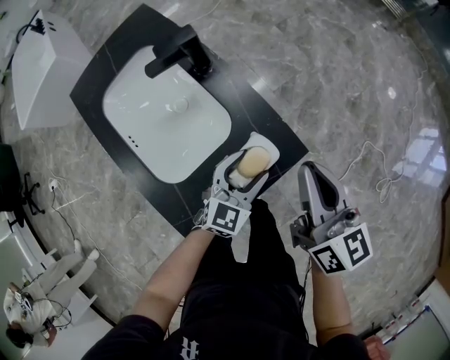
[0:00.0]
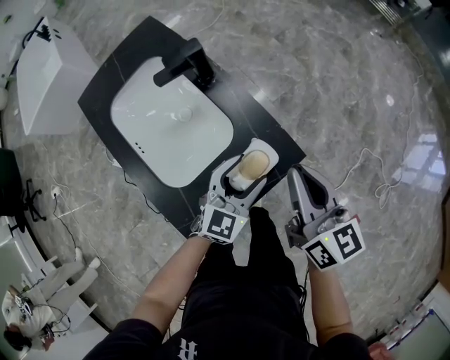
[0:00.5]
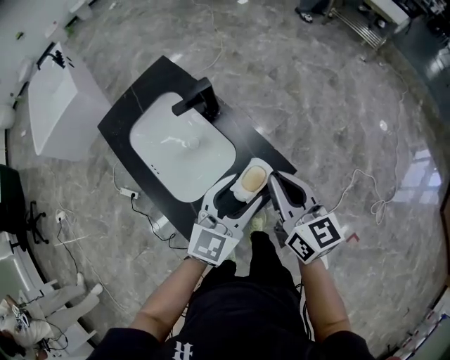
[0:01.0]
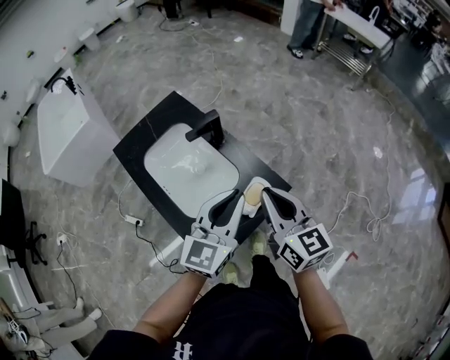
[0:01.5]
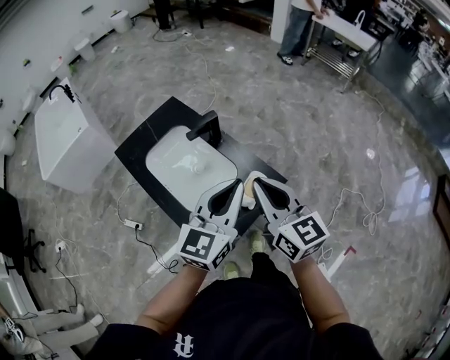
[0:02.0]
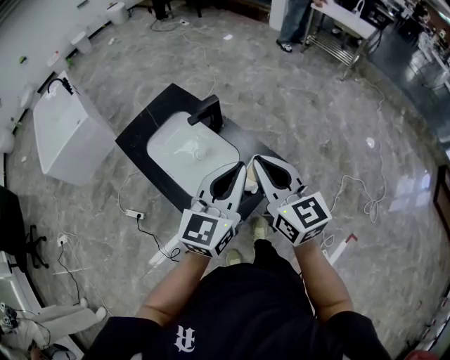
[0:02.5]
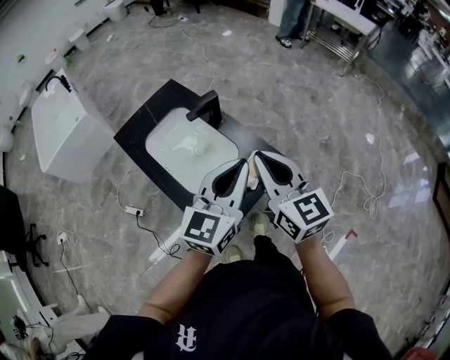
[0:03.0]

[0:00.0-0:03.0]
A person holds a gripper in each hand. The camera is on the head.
0:00.0 to 0:01.5: The right gripper travels upward, to the left and backward by about 15 cm, while the left gripper is displaced upward by approximately 30 cm, rotates roughly 20 degrees, and closes its fingers.
0:01.5 to 0:03.0: Both grippers travel together upward, approximately 5 cm.

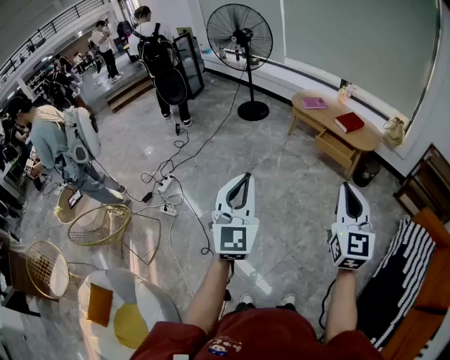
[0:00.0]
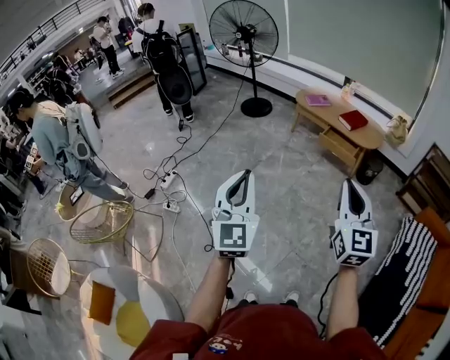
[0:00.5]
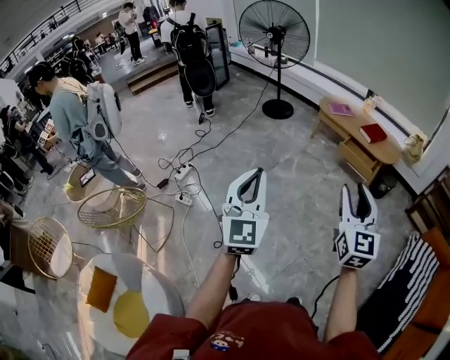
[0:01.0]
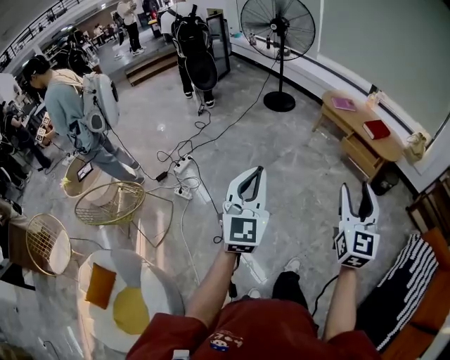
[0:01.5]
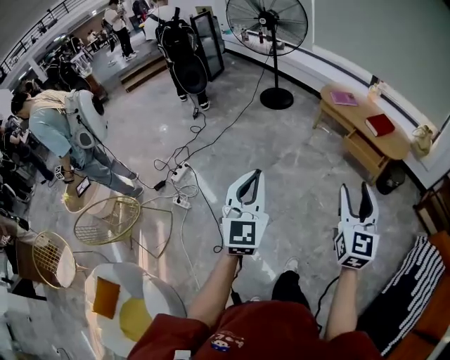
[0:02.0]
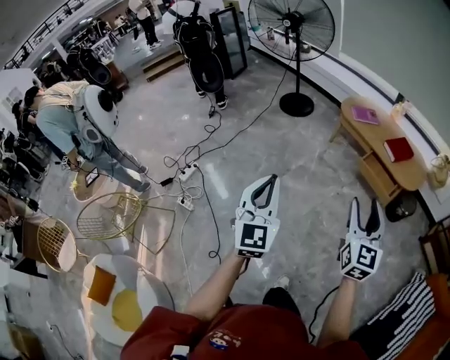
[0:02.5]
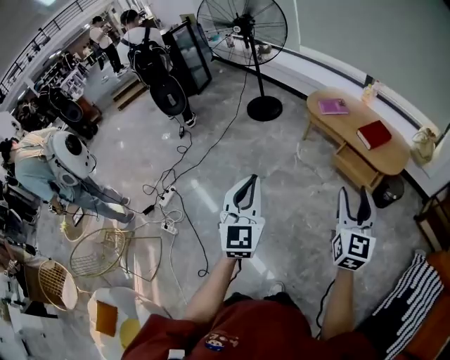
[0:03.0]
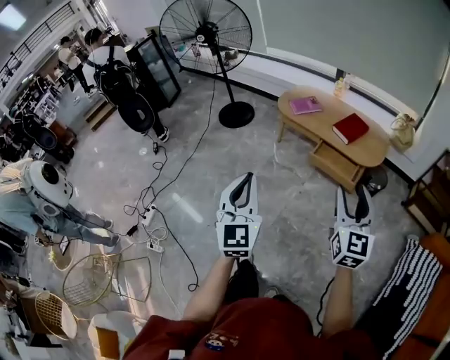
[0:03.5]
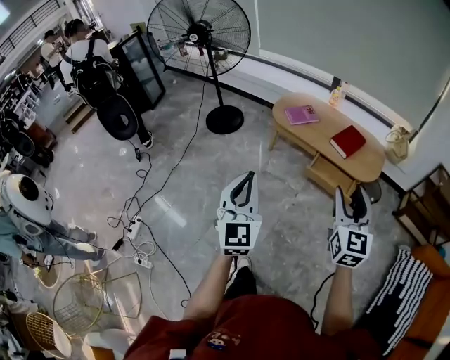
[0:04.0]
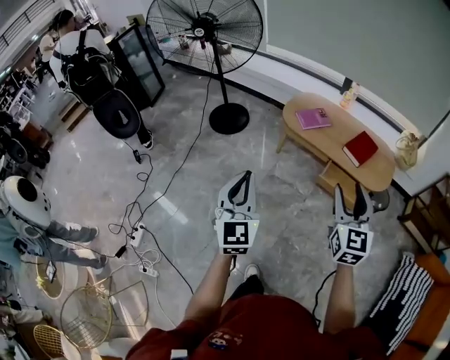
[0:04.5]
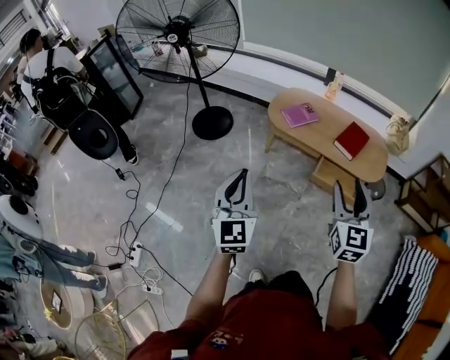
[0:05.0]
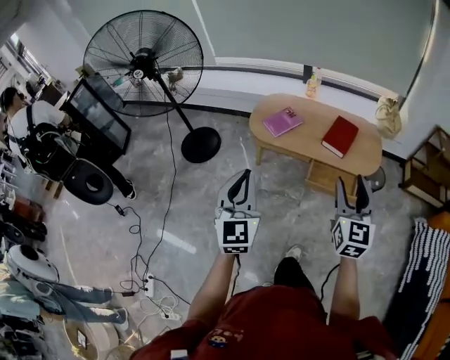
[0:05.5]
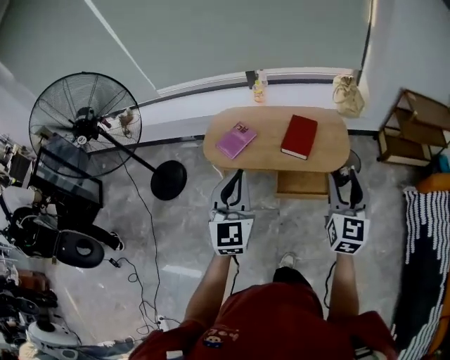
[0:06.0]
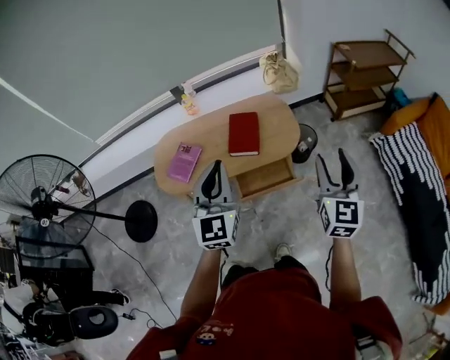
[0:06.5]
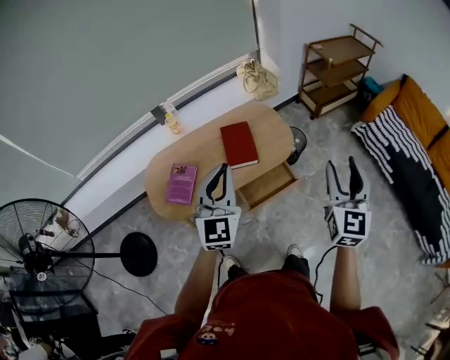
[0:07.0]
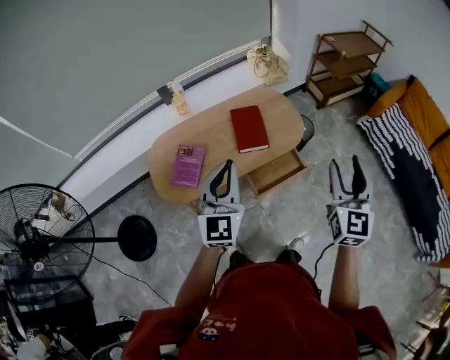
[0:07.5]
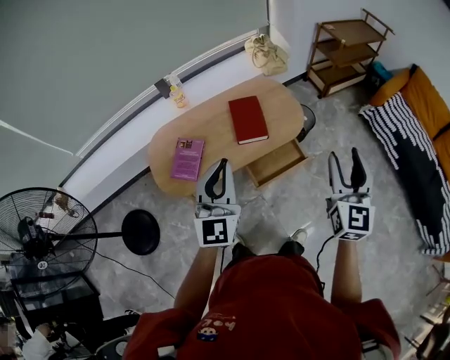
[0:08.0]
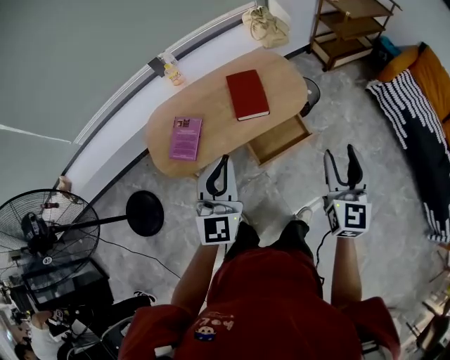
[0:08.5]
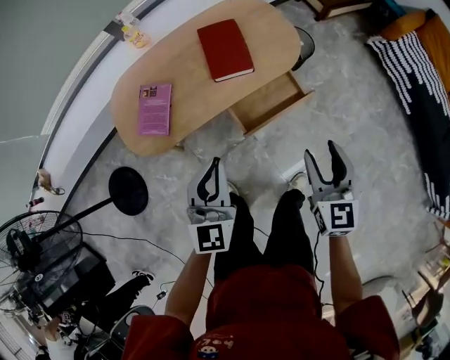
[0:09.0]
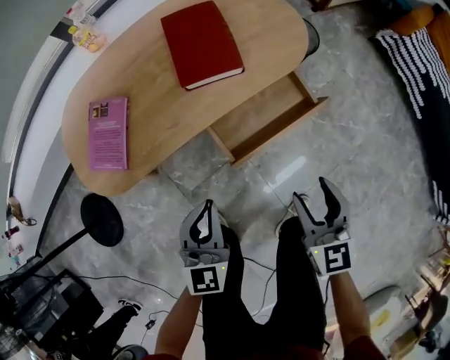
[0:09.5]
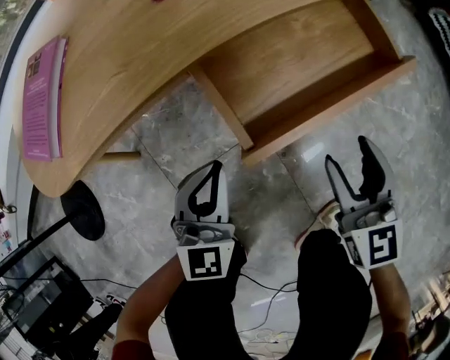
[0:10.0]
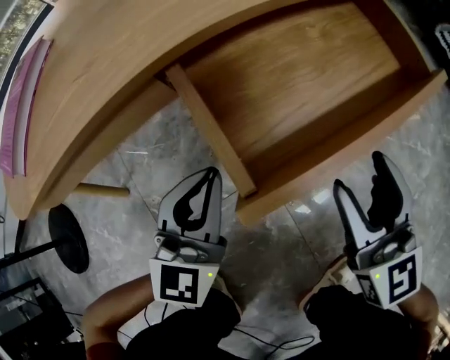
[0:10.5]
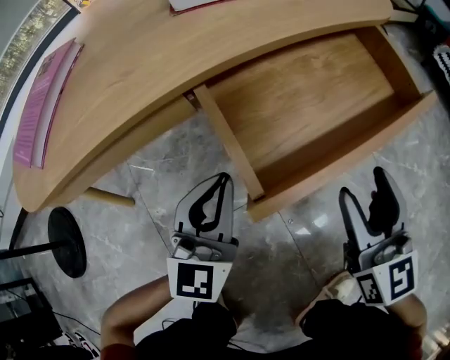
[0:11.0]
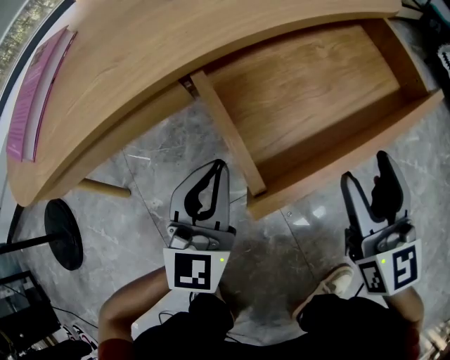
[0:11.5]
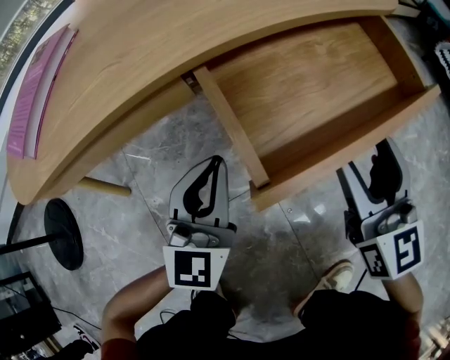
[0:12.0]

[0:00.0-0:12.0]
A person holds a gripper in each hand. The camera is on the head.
0:00.0 to 0:02.0: Both grippers move forward, to the left and downward, some 20 cm. The right gripper opens its fingers.
0:02.0 to 0:04.0: The two grippers travel together, forward, roughly 50 cm.
0:04.0 to 0:06.0: The right gripper moves approximately 30 cm, and turns by roughly 30 degrees, while the left gripper shifts by some 40 cm, and swivels about 30 degrees.
0:06.0 to 0:08.0: The right gripper swivels approximately 30 degrees. The left gripper changes place by approximately 15 cm, and swivels roughly 30 degrees.
0:08.0 to 0:10.0: The grippers both shift downward by about 70 cm. The right gripper turns by roughly 30 degrees. The left gripper swivels some 30 degrees.
0:10.0 to 0:12.0: The left gripper moves forward and downward, some 10 cm; the right gripper heads forward, covering approximately 5 cm.

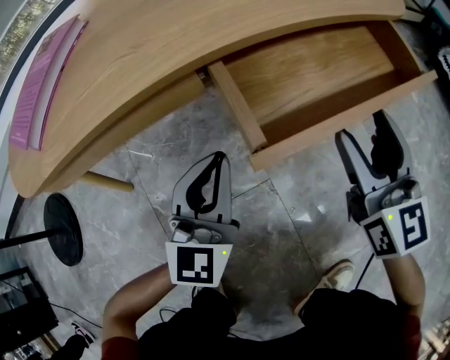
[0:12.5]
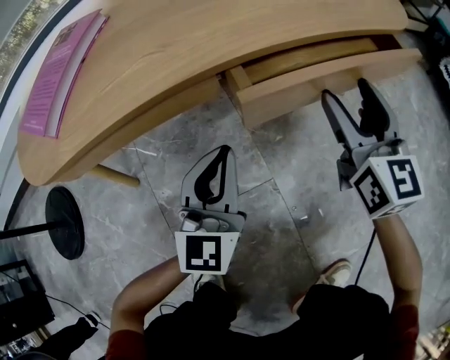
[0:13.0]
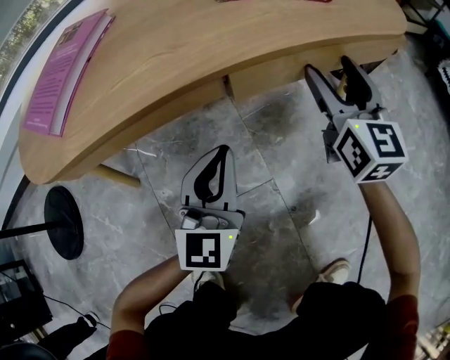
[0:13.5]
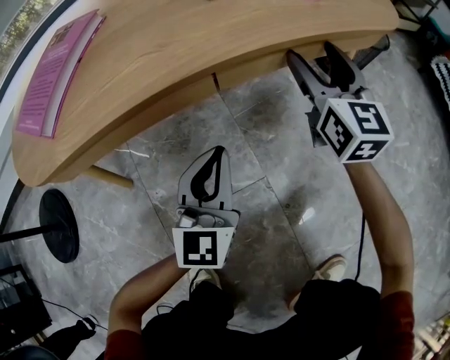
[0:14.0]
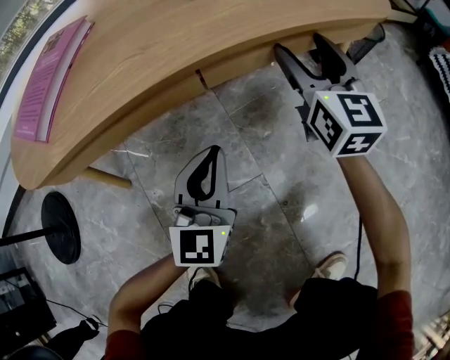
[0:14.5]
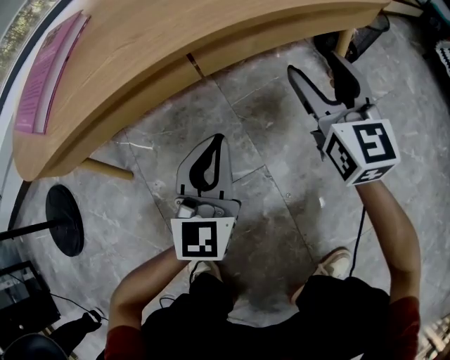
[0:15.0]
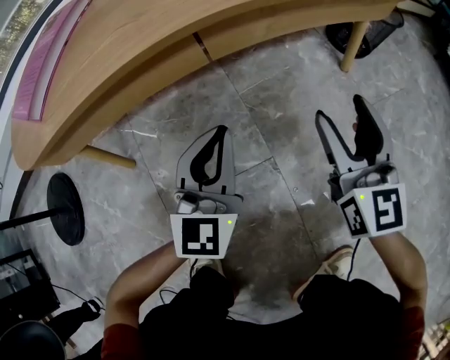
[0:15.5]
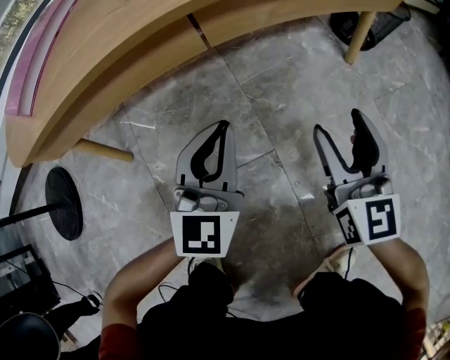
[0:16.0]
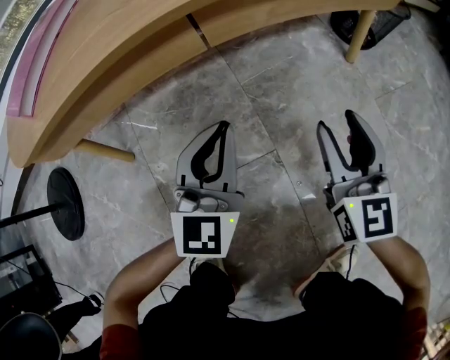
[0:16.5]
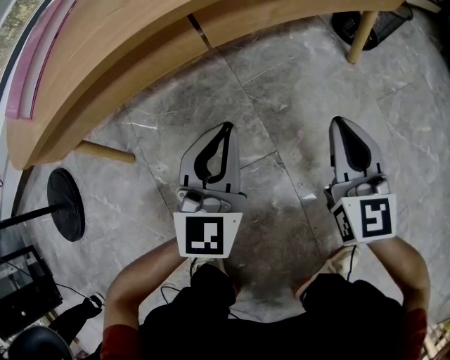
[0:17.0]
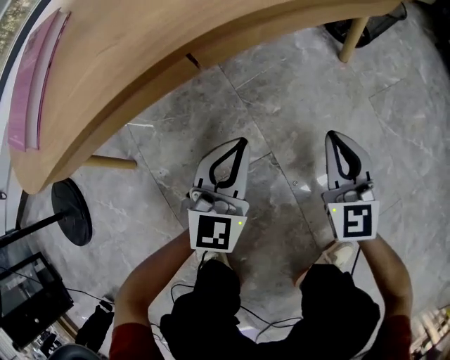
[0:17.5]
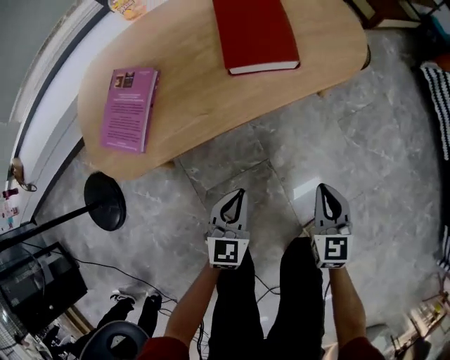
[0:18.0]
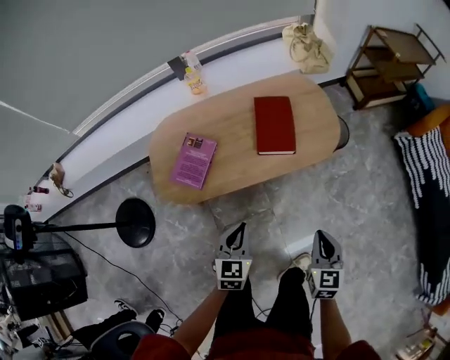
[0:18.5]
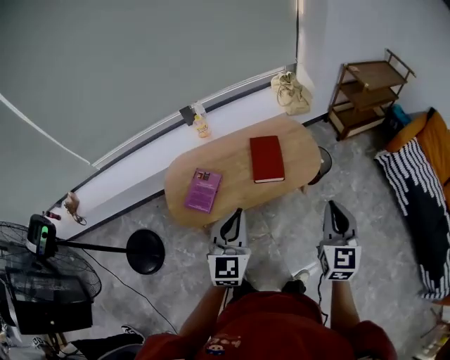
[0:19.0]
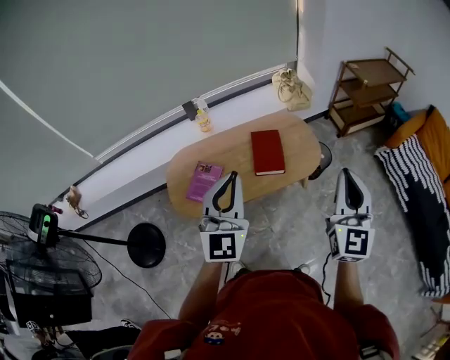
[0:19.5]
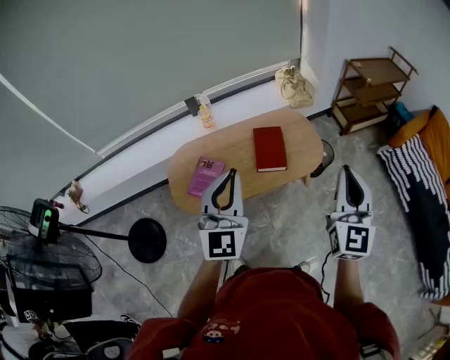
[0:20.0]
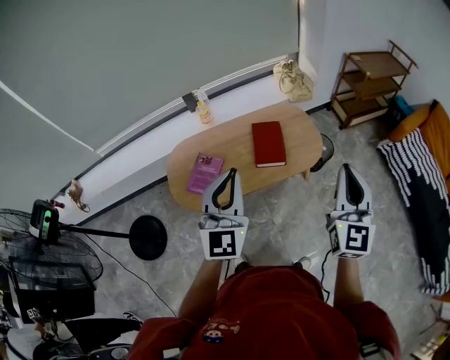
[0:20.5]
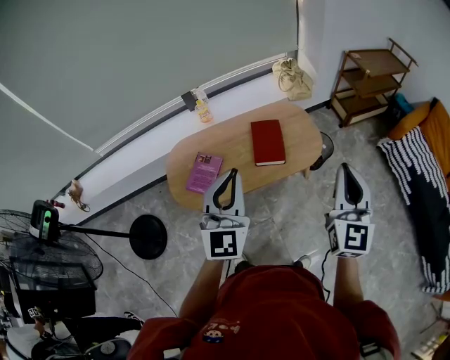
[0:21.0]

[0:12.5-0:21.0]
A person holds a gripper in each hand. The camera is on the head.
0:12.5 to 0:14.5: The right gripper is displaced forward by roughly 15 cm.
0:14.5 to 0:16.5: The right gripper travels backward and downward by approximately 20 cm.
0:16.5 to 0:19.0: Both grippers move upward, some 80 cm. The right gripper closes up.
0:19.0 to 0:21.0: The grippers both shift upward by approximately 10 cm.

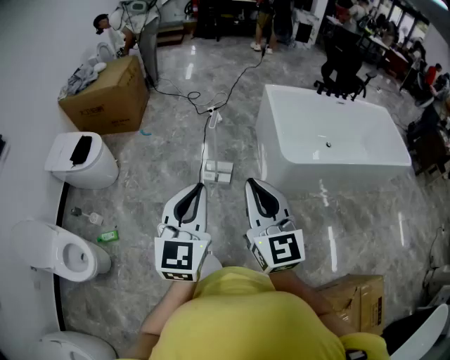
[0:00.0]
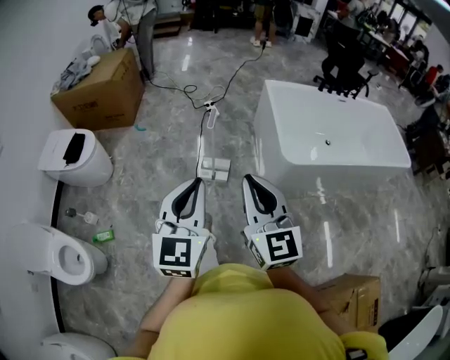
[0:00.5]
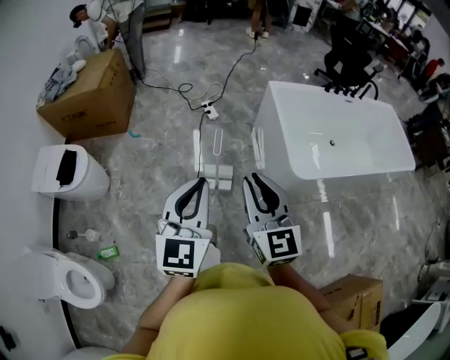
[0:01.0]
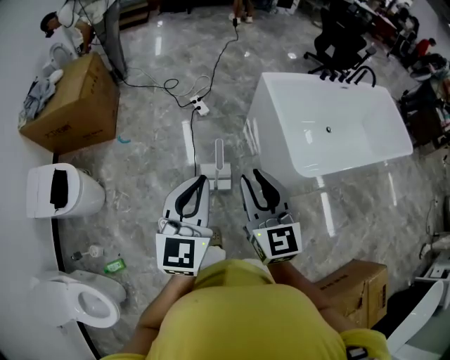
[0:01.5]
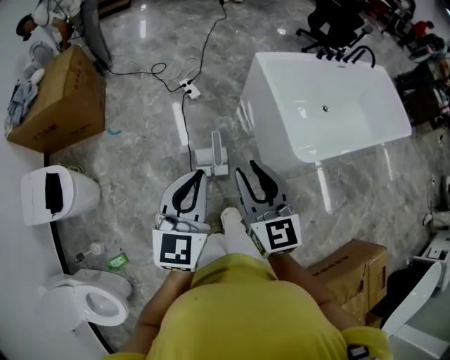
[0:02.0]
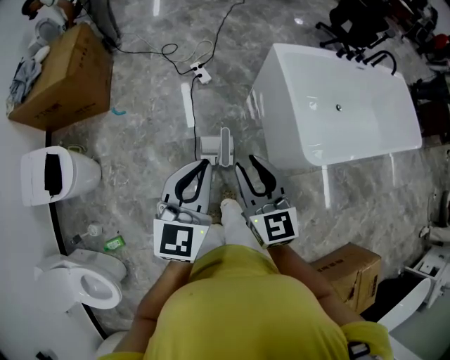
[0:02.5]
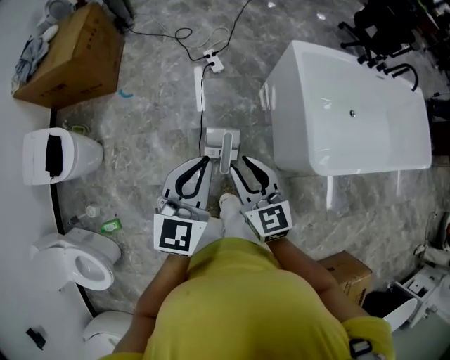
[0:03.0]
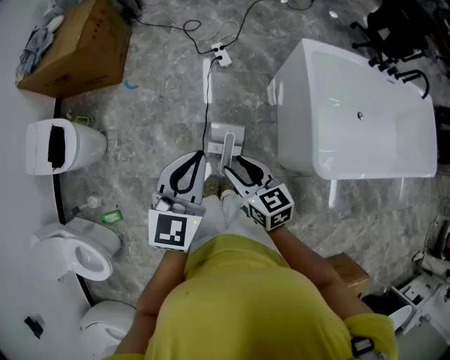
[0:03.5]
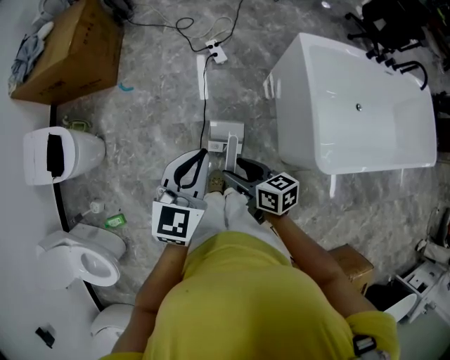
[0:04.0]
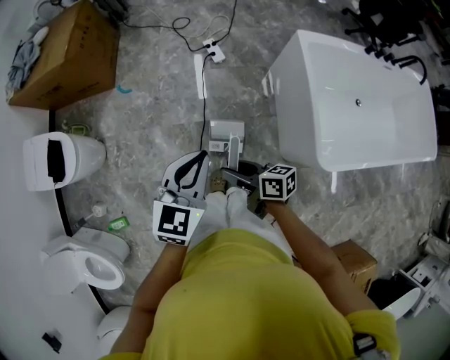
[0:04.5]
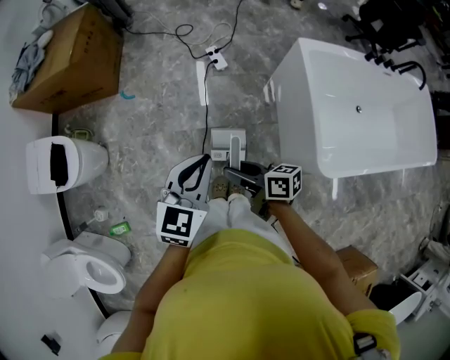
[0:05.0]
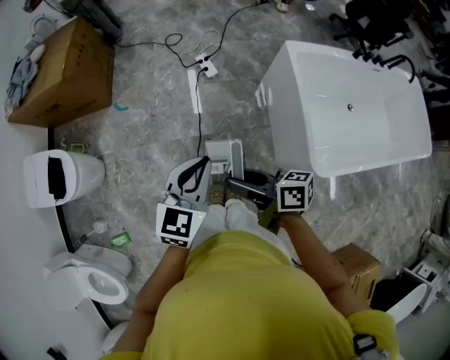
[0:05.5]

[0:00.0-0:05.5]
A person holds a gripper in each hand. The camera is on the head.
0:00.0 to 0:02.0: Both grippers travel together forward, approximately 35 cm. The right gripper opens its fingers.
0:02.0 to 0:03.5: The right gripper moves downward and forward, roughly 20 cm, and turns by approximately 40 degrees. Meanwhile the left gripper moves forward and downward, some 15 cm.
0:03.5 to 0:05.5: The left gripper shifts by roughly 5 cm. The right gripper shifts by roughly 5 cm, and swivels roughly 40 degrees.
